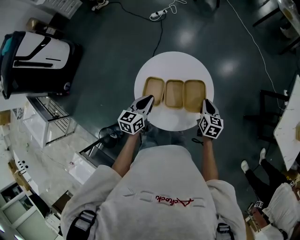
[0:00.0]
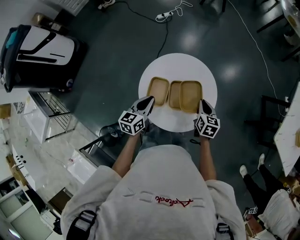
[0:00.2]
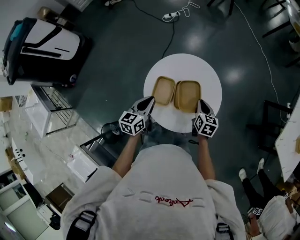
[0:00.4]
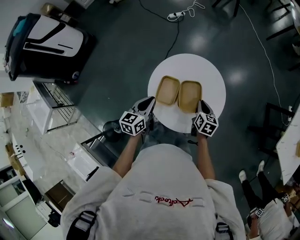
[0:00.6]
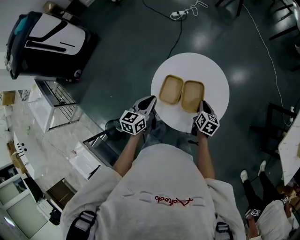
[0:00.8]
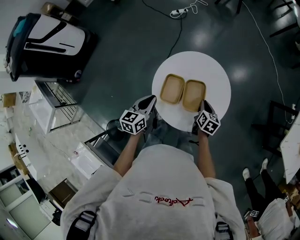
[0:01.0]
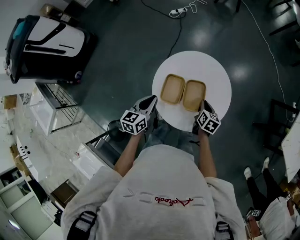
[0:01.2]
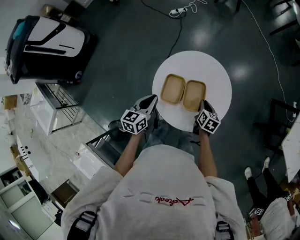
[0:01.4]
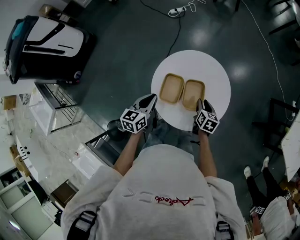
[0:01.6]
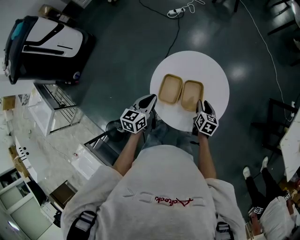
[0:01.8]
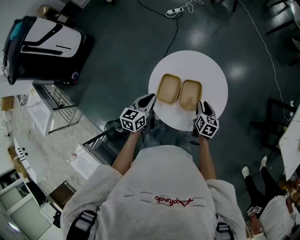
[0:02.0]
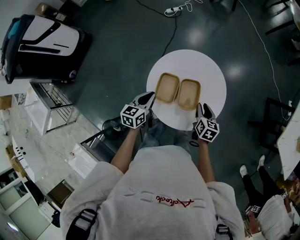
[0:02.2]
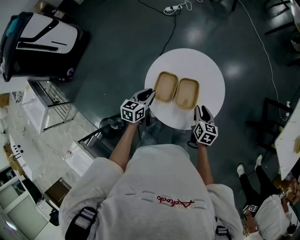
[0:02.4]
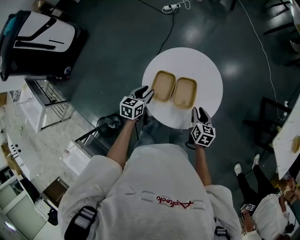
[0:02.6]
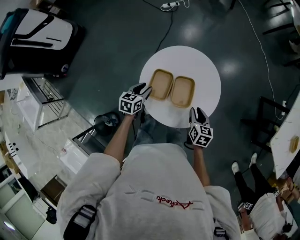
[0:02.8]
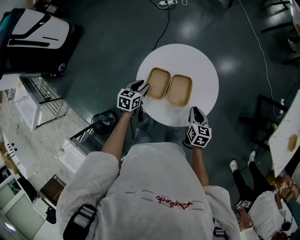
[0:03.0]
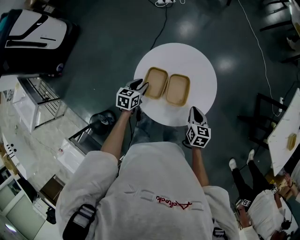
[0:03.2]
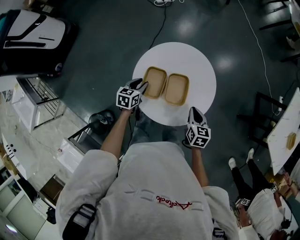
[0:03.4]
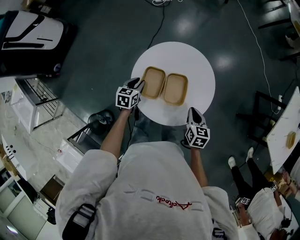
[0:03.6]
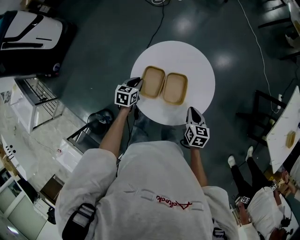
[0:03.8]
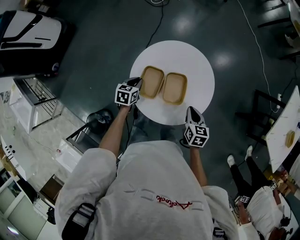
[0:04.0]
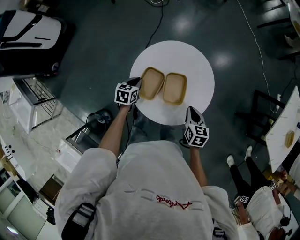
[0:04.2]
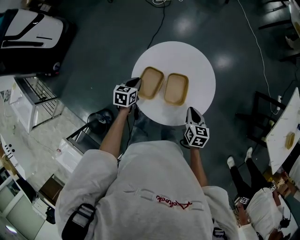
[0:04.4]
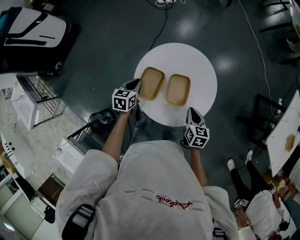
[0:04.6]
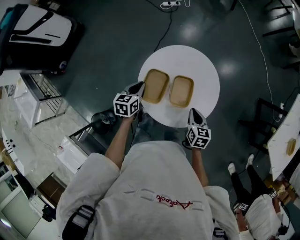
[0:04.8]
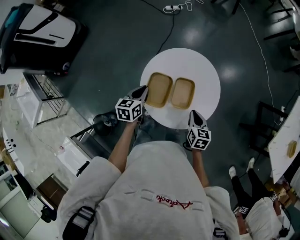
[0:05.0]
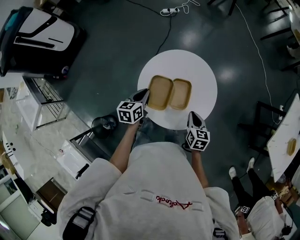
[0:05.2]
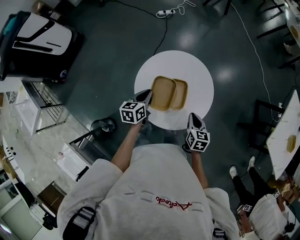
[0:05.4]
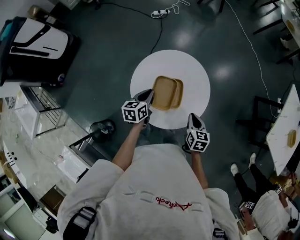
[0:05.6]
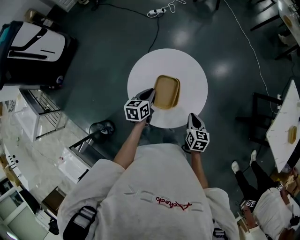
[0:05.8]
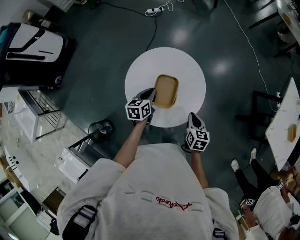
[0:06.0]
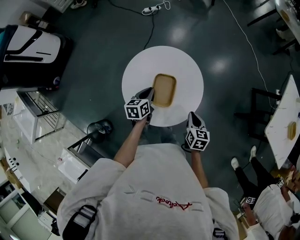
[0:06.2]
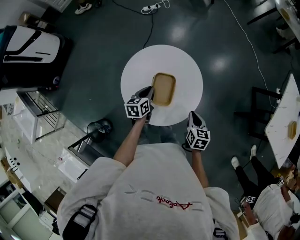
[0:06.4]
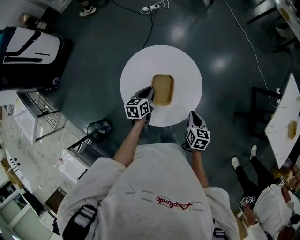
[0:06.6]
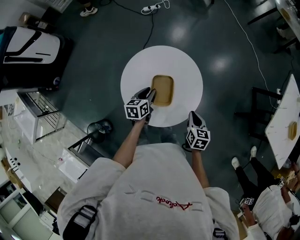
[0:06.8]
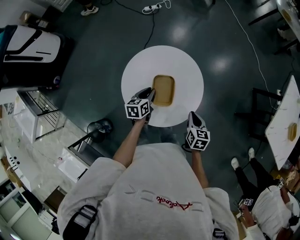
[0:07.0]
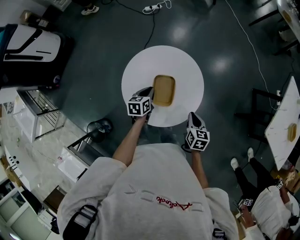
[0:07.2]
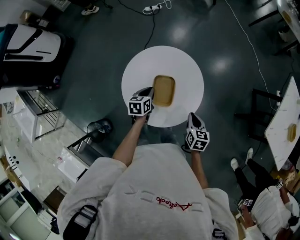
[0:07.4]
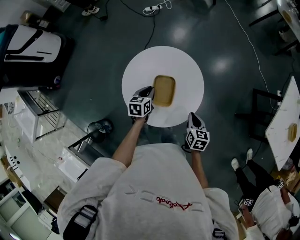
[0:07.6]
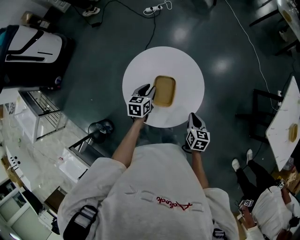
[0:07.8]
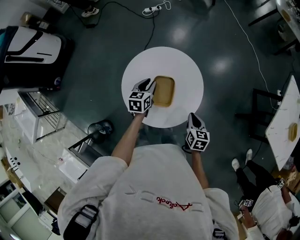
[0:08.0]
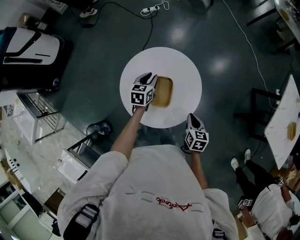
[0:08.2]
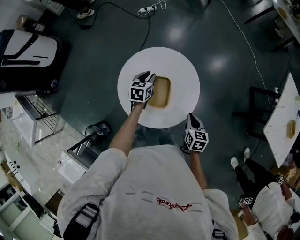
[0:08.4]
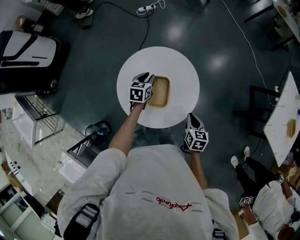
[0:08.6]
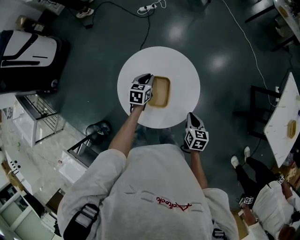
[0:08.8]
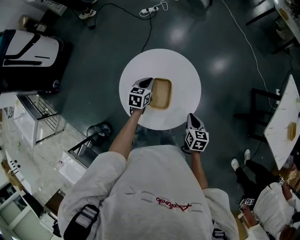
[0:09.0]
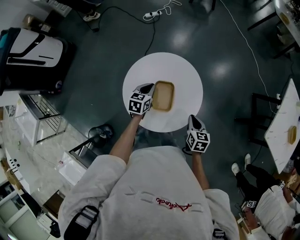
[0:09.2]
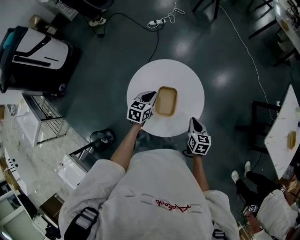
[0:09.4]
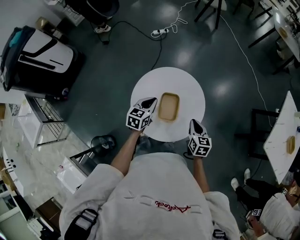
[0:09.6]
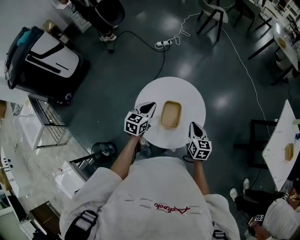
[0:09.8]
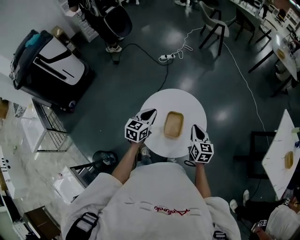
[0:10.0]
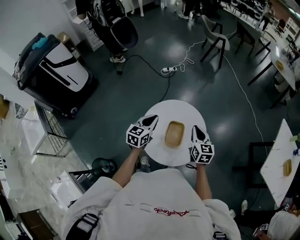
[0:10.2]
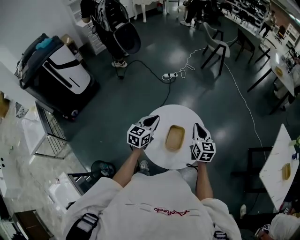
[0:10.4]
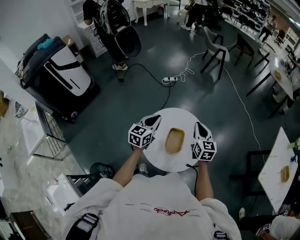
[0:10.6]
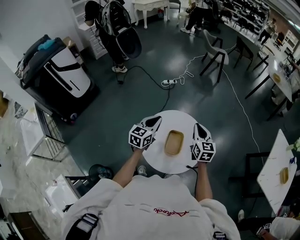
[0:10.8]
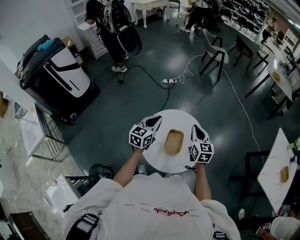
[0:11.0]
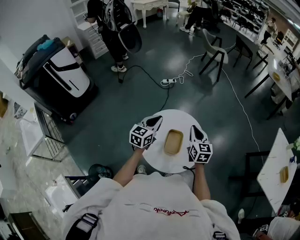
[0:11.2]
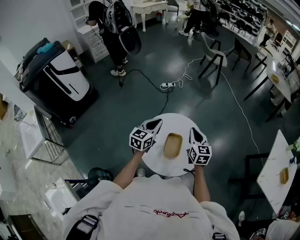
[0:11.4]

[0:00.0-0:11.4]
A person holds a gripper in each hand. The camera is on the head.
0:00.0 to 0:01.4: The left gripper travels to the left by roughly 10 cm. The right gripper shifts about 15 cm to the left and downward.
0:01.4 to 0:02.8: The right gripper ends up roughly 5 cm from where it was, and opens. The left gripper heads downward, covering approximately 10 cm, and opens.
0:02.8 to 0:04.2: The right gripper closes. The left gripper closes its fingers.
0:04.2 to 0:05.6: The left gripper goes some 10 cm upward and to the right.
0:05.6 to 0:07.2: The right gripper goes some 5 cm to the right; the left gripper goes some 10 cm downward and to the right.
0:07.2 to 0:08.6: The left gripper travels forward by roughly 10 cm.
0:08.6 to 0:10.0: The right gripper heads upward, to the left and forward, covering about 20 cm, and turns by about 20 degrees. The left gripper goes roughly 20 cm upward, backward and to the left, changes its angle by roughly 20 degrees, and closes its fingers.
0:10.0 to 0:11.4: The right gripper heads upward and forward, covering approximately 10 cm. The left gripper goes about 10 cm upward.

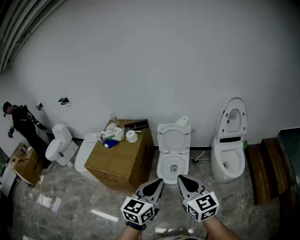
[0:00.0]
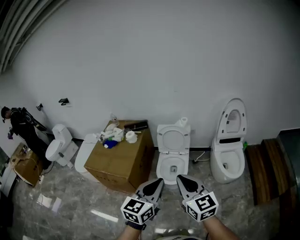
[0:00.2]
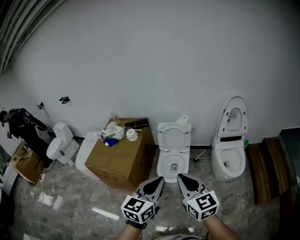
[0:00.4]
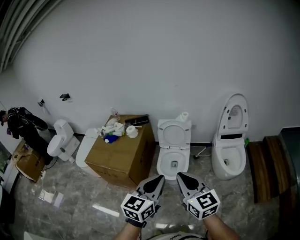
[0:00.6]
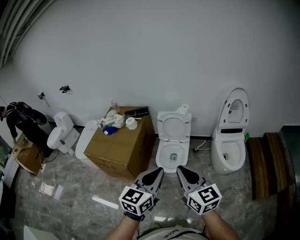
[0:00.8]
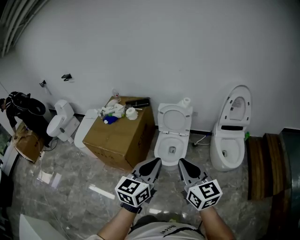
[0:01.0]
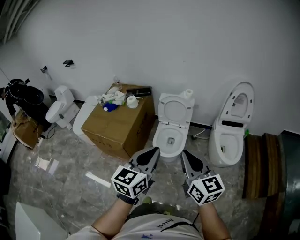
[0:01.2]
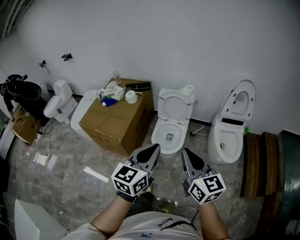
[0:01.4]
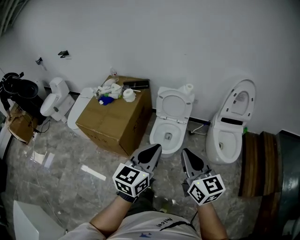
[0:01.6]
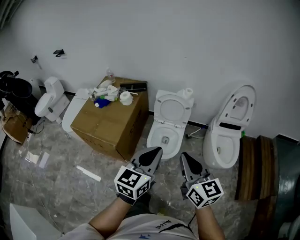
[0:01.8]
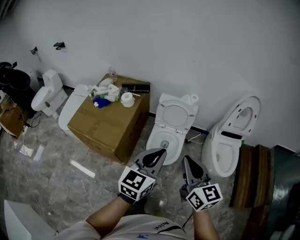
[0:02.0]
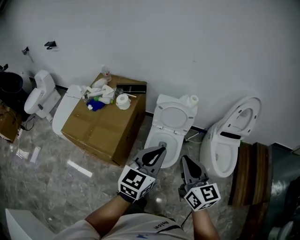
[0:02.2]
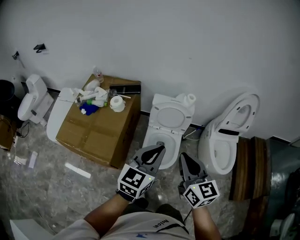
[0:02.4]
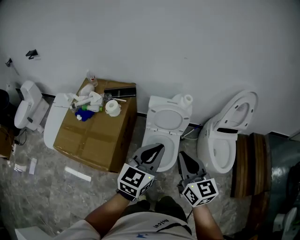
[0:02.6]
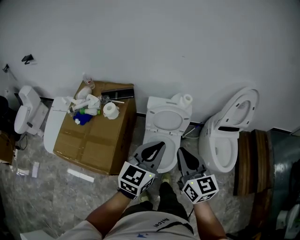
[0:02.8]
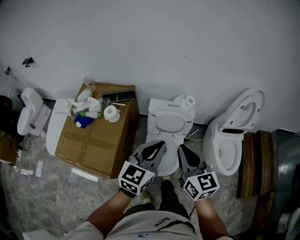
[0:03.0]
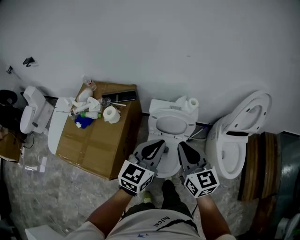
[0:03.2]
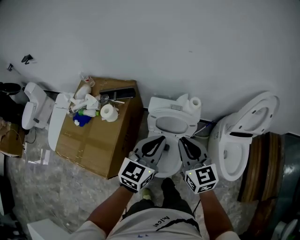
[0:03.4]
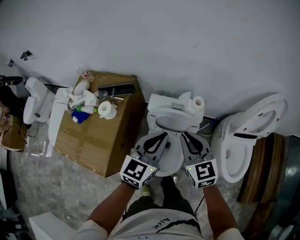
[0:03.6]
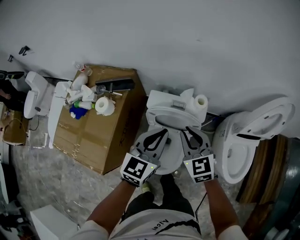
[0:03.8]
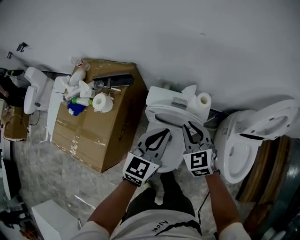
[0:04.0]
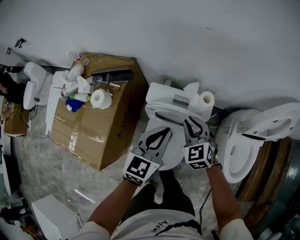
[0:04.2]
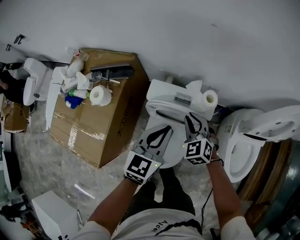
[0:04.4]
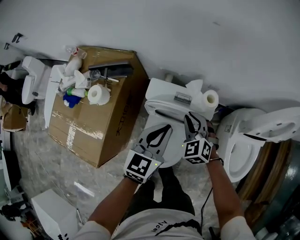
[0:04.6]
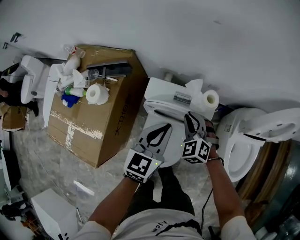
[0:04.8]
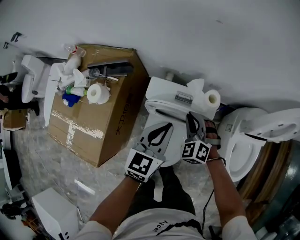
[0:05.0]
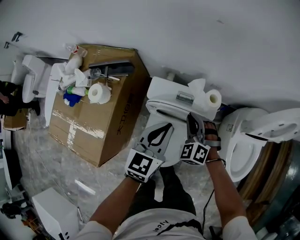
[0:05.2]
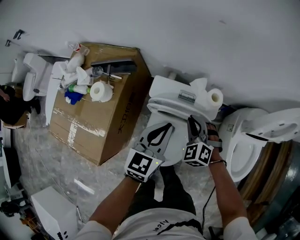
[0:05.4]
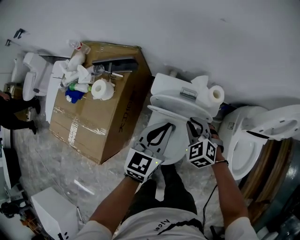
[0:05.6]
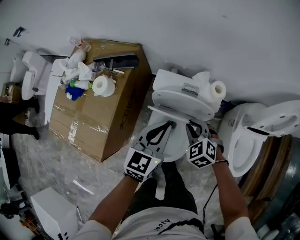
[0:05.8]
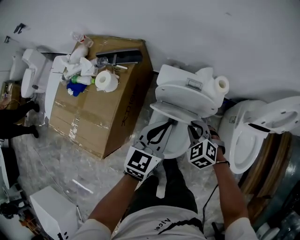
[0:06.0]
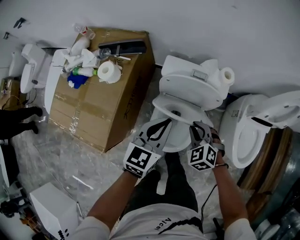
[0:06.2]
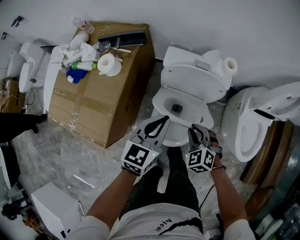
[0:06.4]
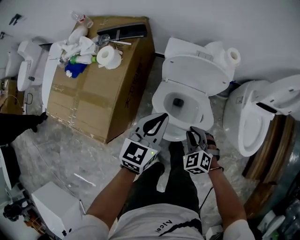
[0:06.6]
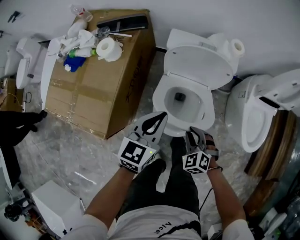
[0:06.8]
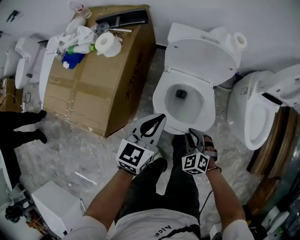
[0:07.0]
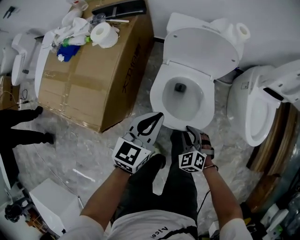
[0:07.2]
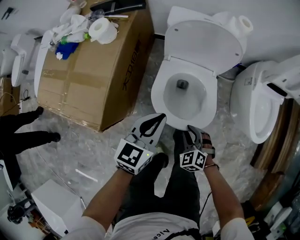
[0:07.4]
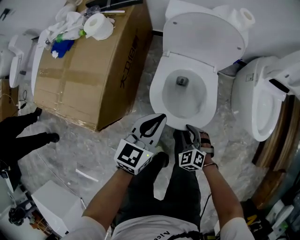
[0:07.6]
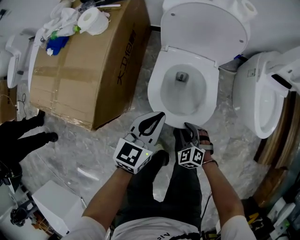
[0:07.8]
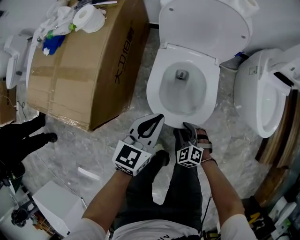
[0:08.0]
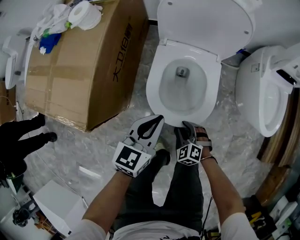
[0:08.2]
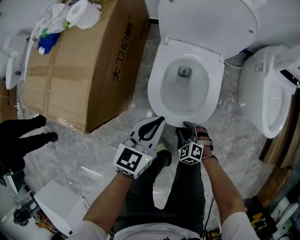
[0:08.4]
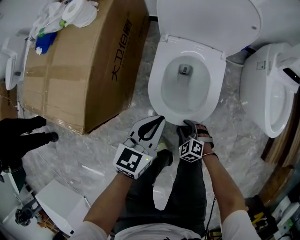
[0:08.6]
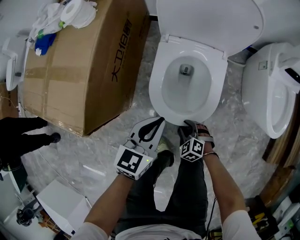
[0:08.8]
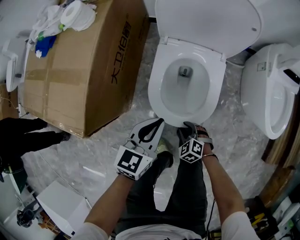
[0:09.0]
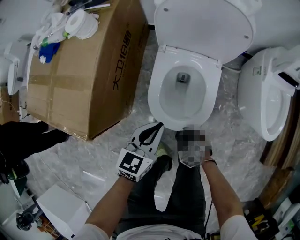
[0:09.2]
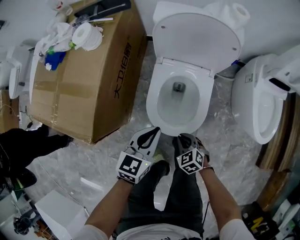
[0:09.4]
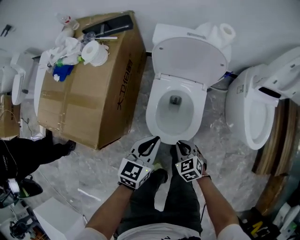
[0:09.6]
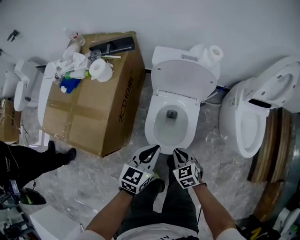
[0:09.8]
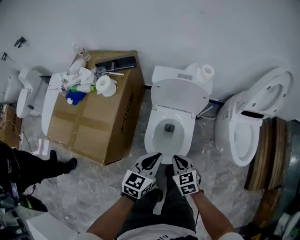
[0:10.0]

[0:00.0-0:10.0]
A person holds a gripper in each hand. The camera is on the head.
0:00.0 to 0:01.4: The right gripper is displaced to the right by some 5 cm.
0:01.4 to 0:02.8: The two grippers go about 35 cm forward.
0:02.8 to 0:04.2: The grippers both shift forward and downward by roughly 35 cm. The right gripper rotates some 40 degrees.
0:04.2 to 0:05.8: The left gripper shifts by some 5 cm. The right gripper goes about 10 cm downward and backward, and rotates approximately 20 degrees.
0:05.8 to 0:07.2: The right gripper shifts approximately 35 cm backward and downward. Meanwhile the left gripper goes about 25 cm backward, downward and to the left.
0:07.2 to 0:08.6: Both grippers move downward, about 20 cm.
0:08.6 to 0:10.0: The right gripper moves upward, some 35 cm, changes its angle by some 40 degrees, and closes up, while the left gripper is displaced upward by roughly 20 cm.

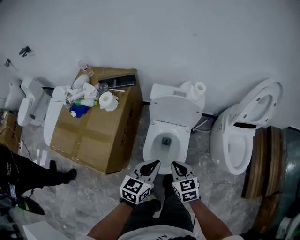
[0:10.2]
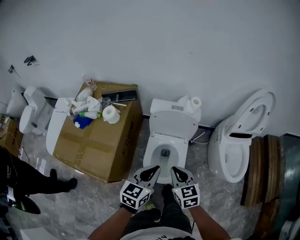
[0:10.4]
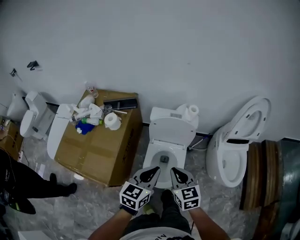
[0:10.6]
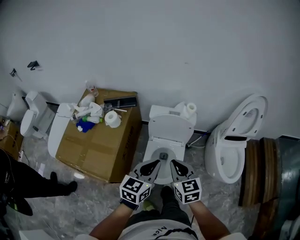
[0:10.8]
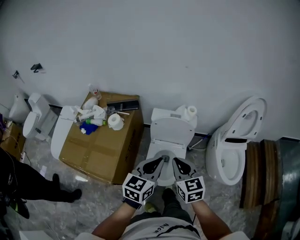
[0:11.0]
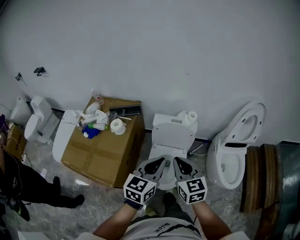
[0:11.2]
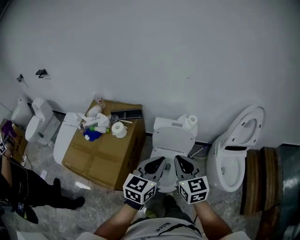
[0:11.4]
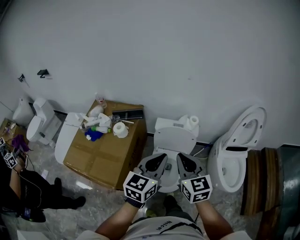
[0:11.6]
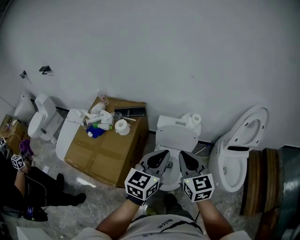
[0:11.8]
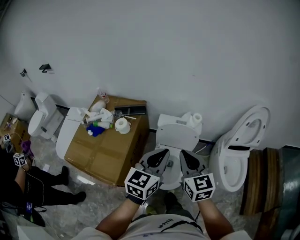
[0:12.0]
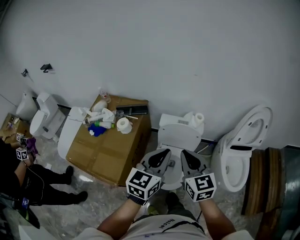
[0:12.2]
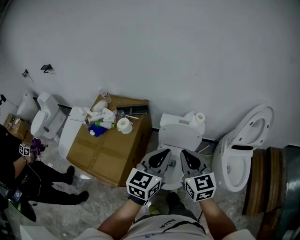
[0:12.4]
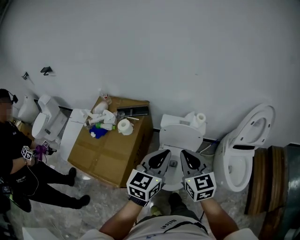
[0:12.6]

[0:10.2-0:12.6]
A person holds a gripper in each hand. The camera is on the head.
0:10.2 to 0:11.4: The grippers both shift upward by approximately 25 cm. The right gripper rotates some 20 degrees.
0:11.4 to 0:12.6: The grippers stay close to where they were, moving slightly.
